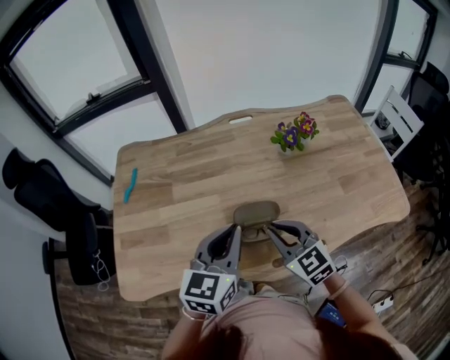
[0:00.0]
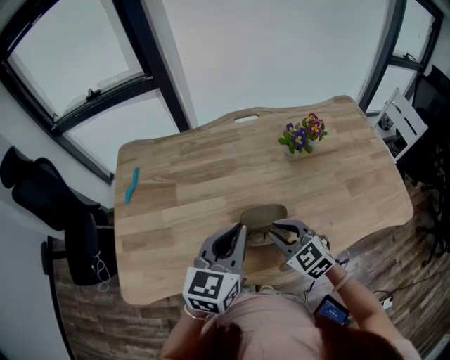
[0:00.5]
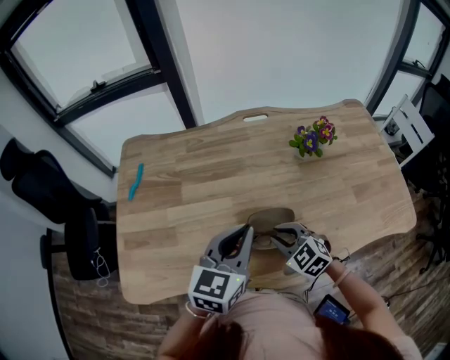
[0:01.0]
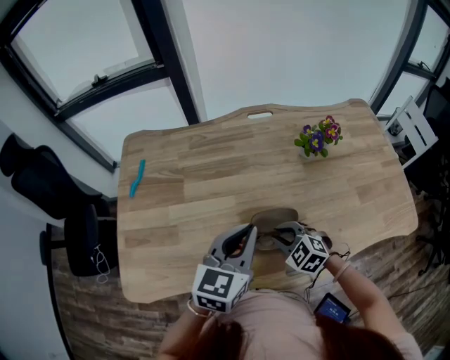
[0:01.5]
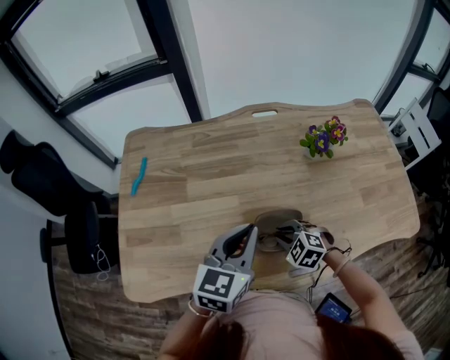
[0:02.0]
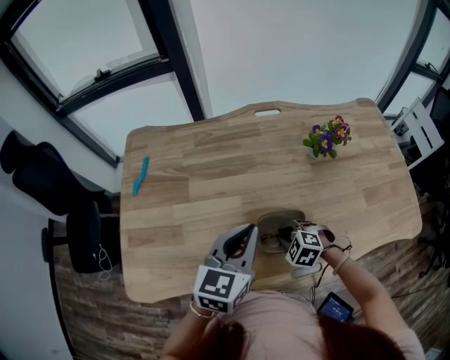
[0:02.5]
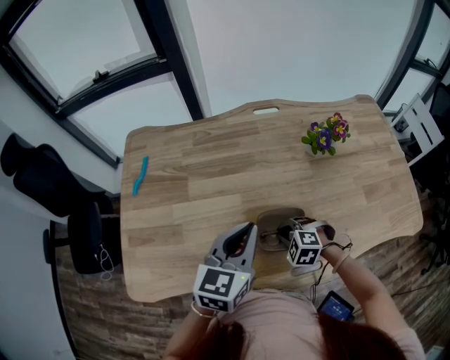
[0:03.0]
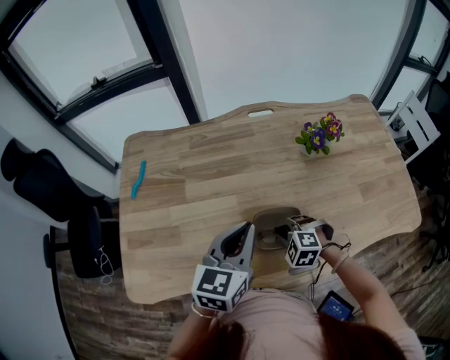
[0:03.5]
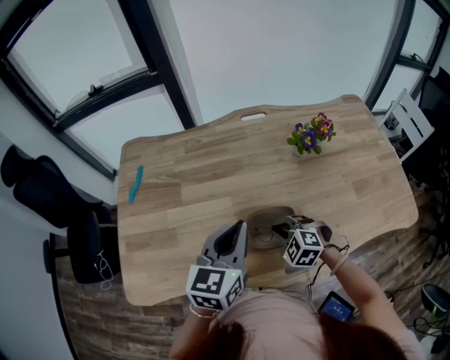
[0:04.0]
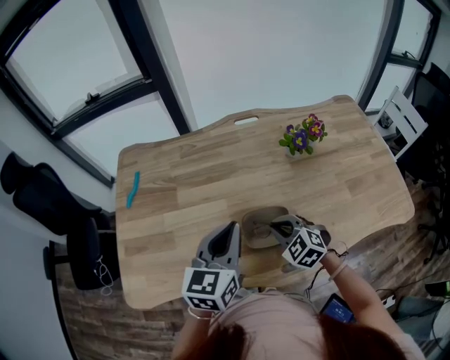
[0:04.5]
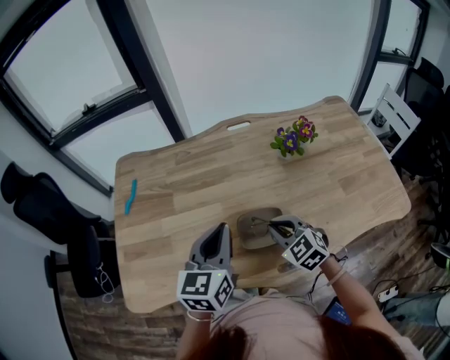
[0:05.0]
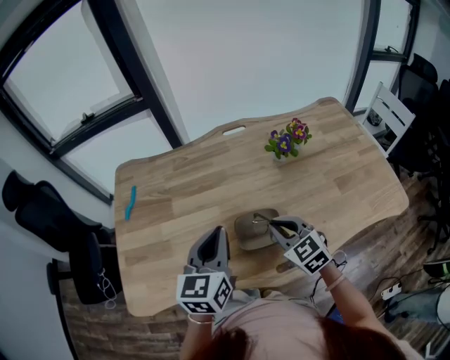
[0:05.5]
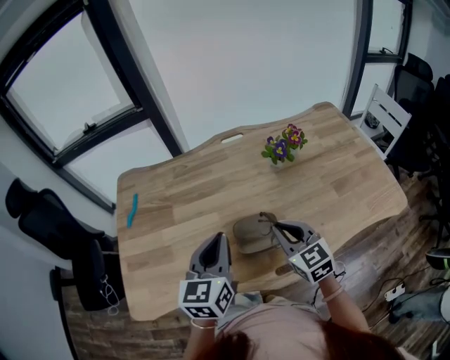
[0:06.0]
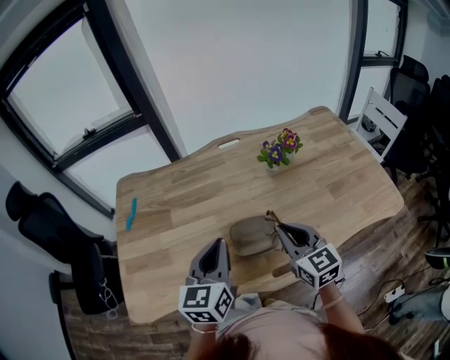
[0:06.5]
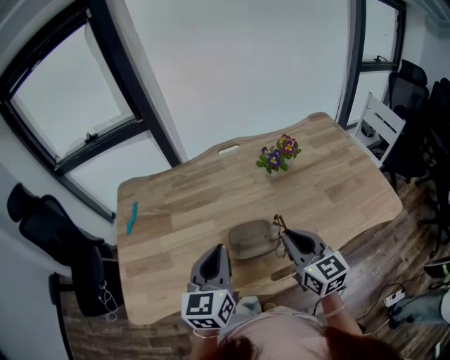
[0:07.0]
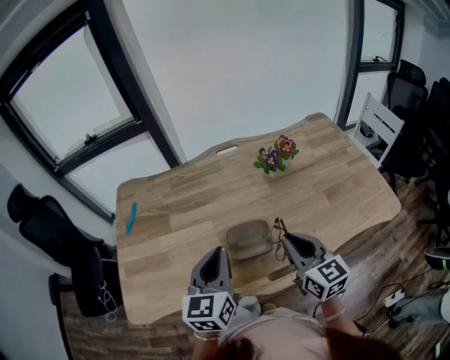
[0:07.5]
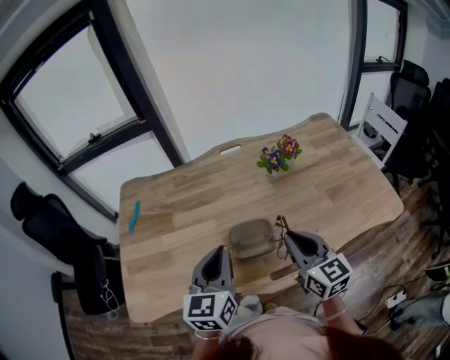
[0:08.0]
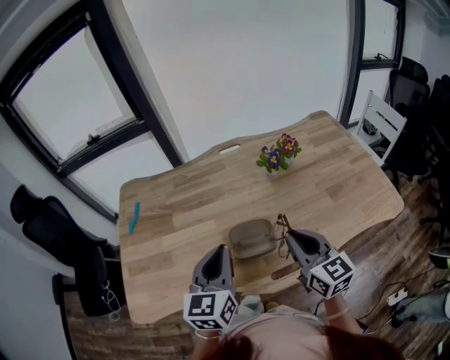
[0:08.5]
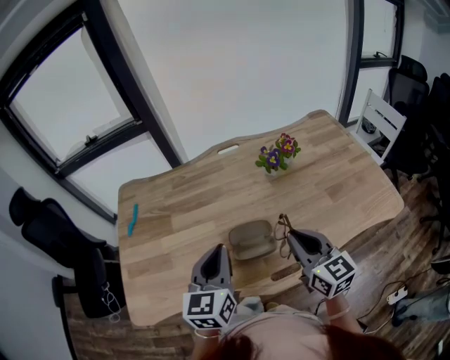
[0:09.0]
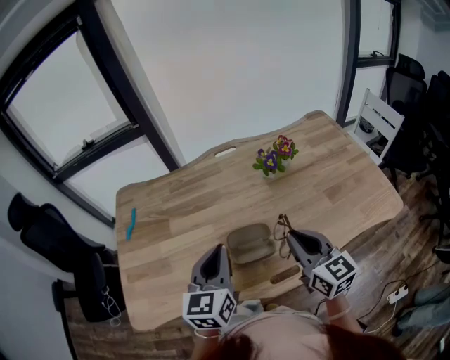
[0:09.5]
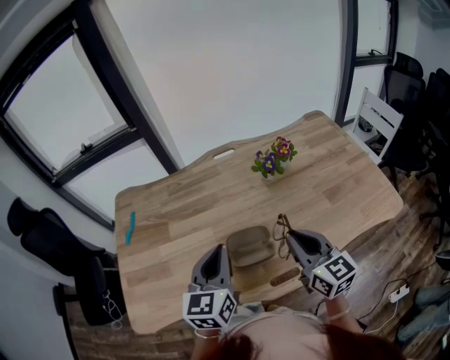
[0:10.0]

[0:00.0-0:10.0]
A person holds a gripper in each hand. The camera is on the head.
0:00.0 to 0:02.0: The right gripper shifts roughly 15 cm downward, and angles its fingers downward, by roughly 30 degrees. The left gripper travels forward by some 5 cm.
0:02.0 to 0:04.0: The grippers move only a little.
0:04.0 to 0:06.0: The right gripper goes roughly 15 cm upward, and tips its fingers upward by roughly 30 degrees.
0:06.0 to 0:08.0: The right gripper moves upward, approximately 5 cm.
0:08.0 to 0:10.0: There are only small adjustments of the grippers.

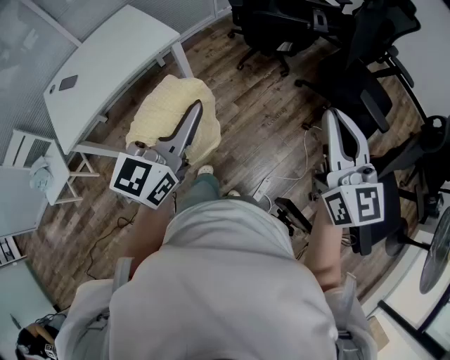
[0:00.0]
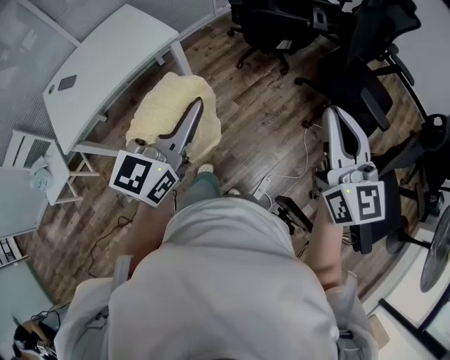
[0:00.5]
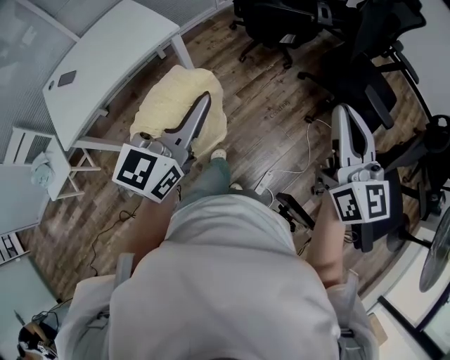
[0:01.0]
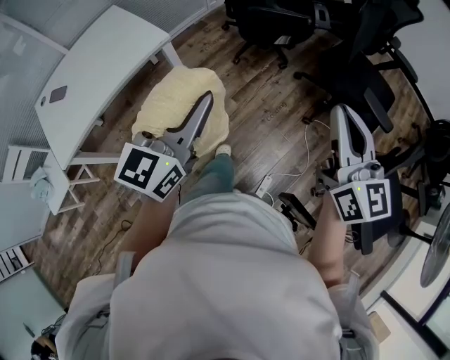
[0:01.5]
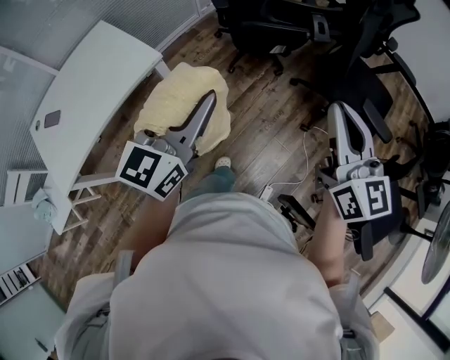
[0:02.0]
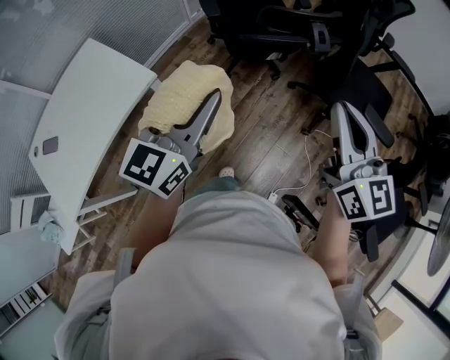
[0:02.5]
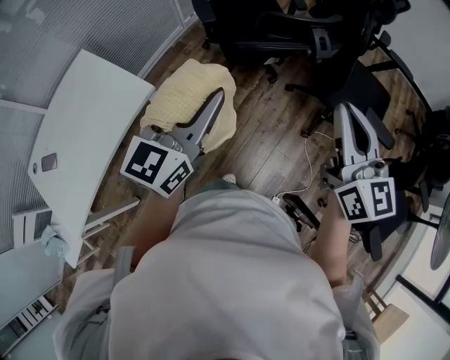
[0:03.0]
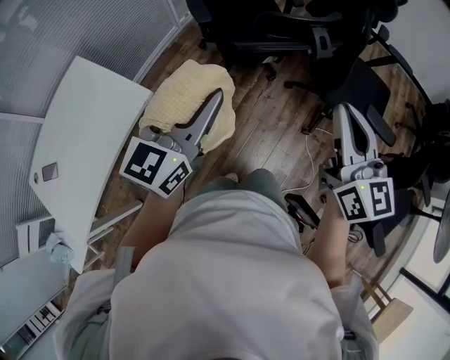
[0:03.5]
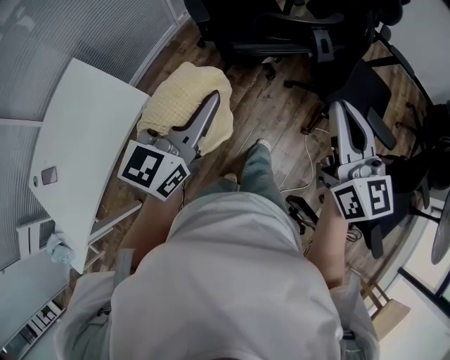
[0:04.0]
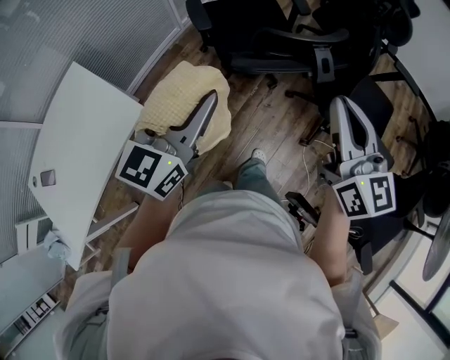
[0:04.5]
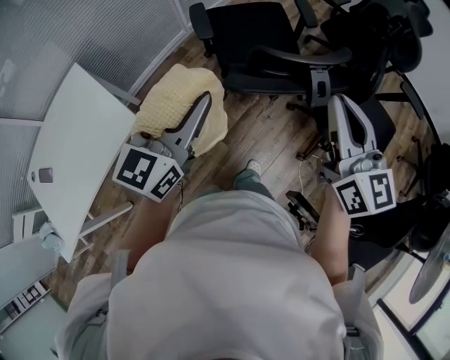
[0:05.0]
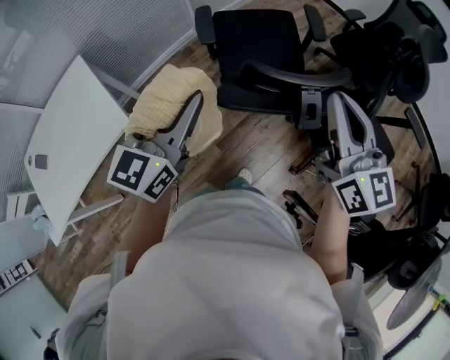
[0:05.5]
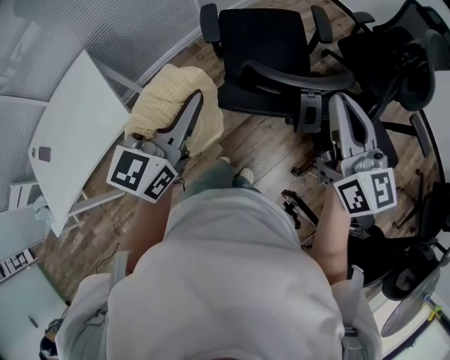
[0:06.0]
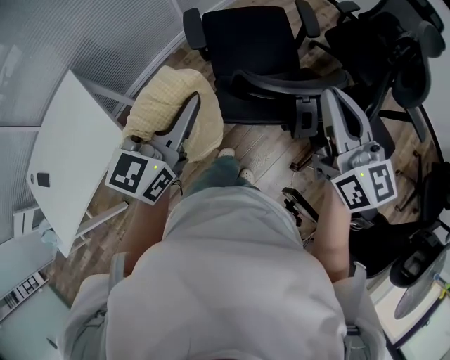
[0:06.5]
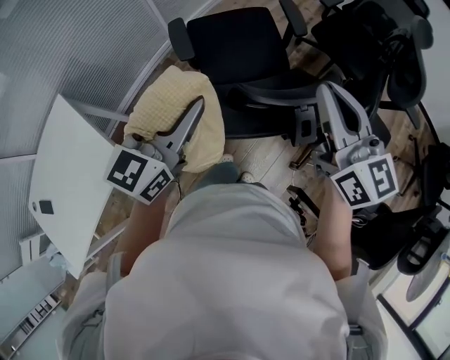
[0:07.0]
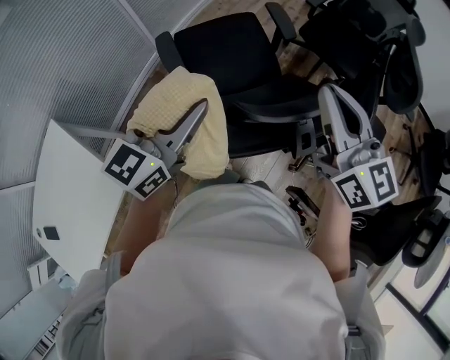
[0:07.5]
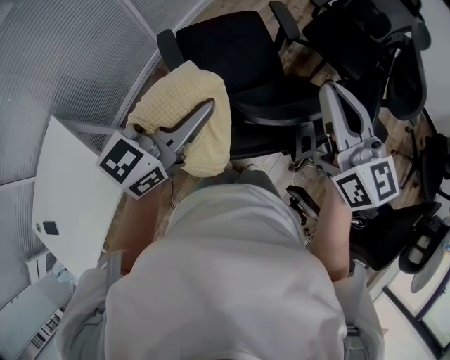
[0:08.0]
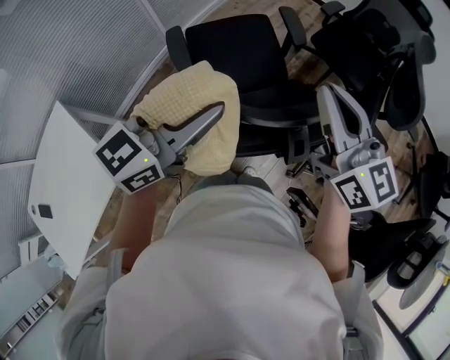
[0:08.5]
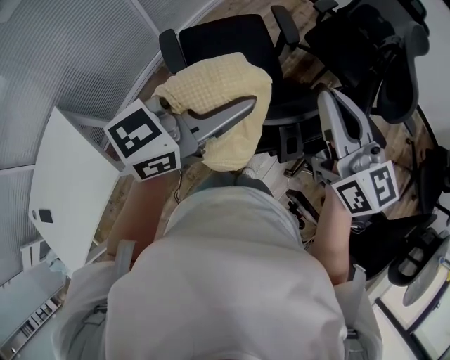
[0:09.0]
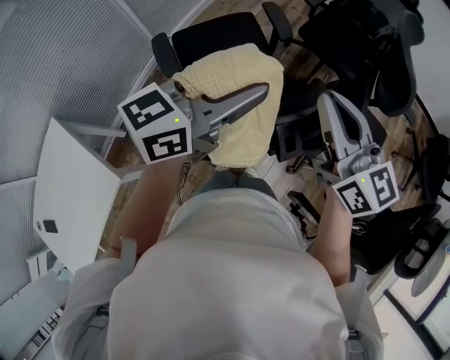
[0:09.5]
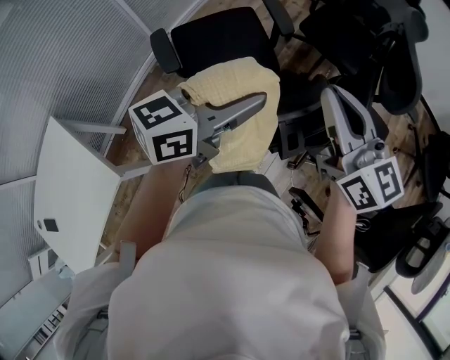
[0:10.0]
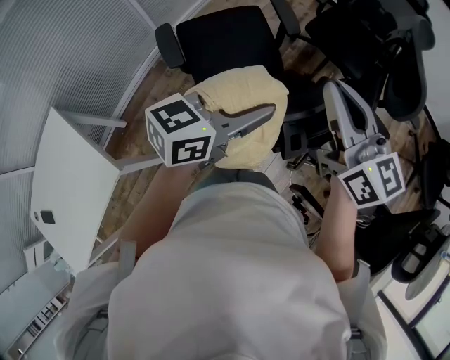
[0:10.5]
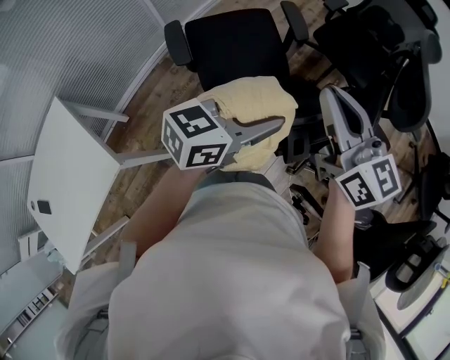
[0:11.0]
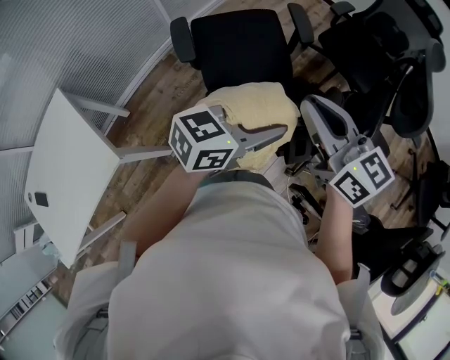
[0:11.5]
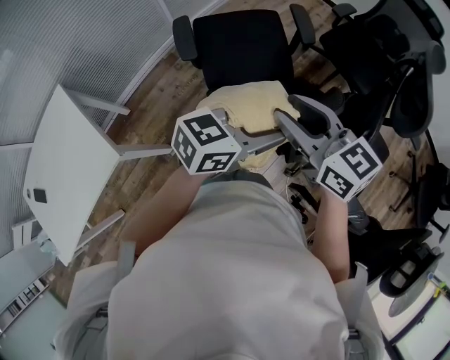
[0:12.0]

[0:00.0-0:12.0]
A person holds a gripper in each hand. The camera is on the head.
0:00.0 to 0:02.0: The grippers both shift forward by about 15 cm.
0:02.0 to 0:04.0: Both grippers move forward, about 15 cm.
0:04.0 to 0:06.0: The grippers both shift forward and to the right by some 25 cm. The left gripper rotates approximately 20 degrees.
0:06.0 to 0:08.0: The grippers both shift forward by roughly 10 cm. The left gripper swivels some 30 degrees.
0:08.0 to 0:10.0: The left gripper travels to the right by approximately 10 cm, and changes its angle by some 20 degrees.
0:10.0 to 0:12.0: The right gripper goes about 10 cm to the left and downward, changes its angle by some 30 degrees, and opens its fingers; the left gripper moves downward, some 5 cm.

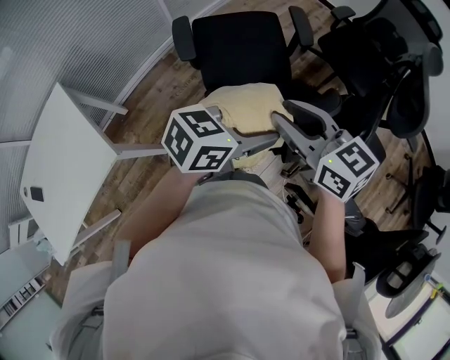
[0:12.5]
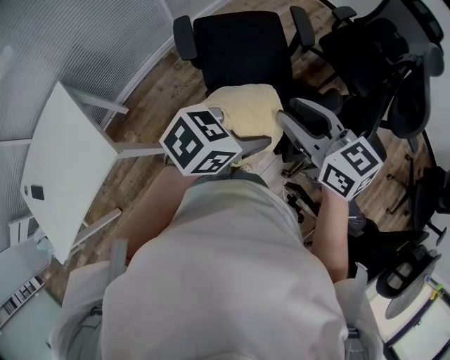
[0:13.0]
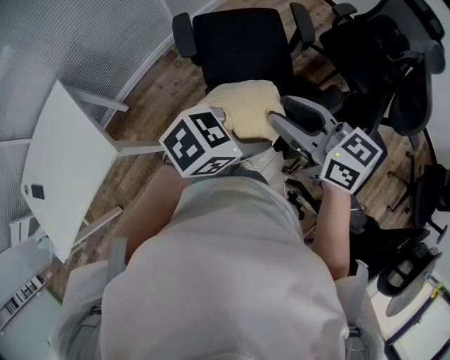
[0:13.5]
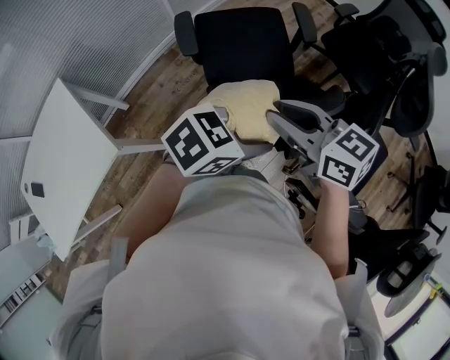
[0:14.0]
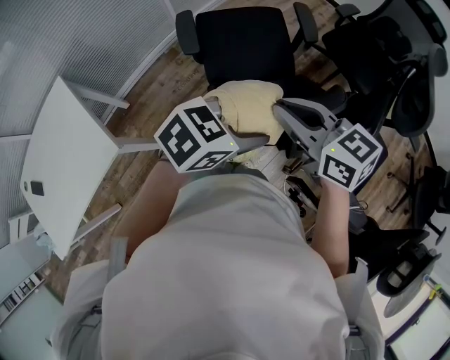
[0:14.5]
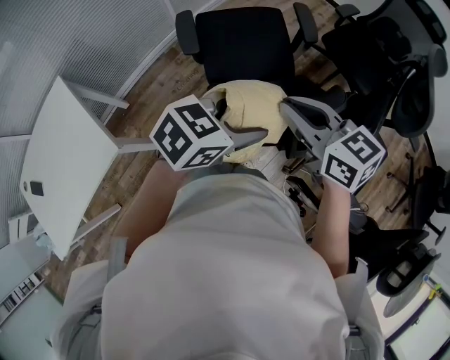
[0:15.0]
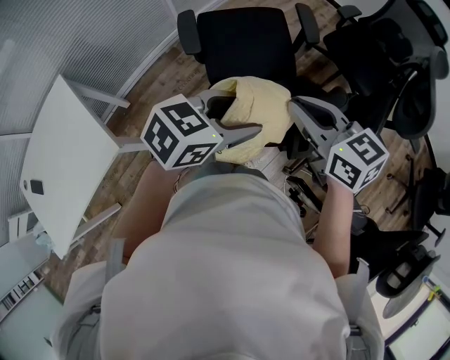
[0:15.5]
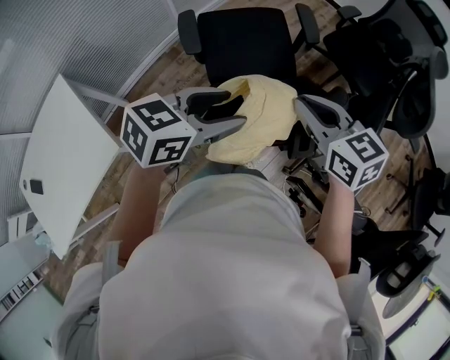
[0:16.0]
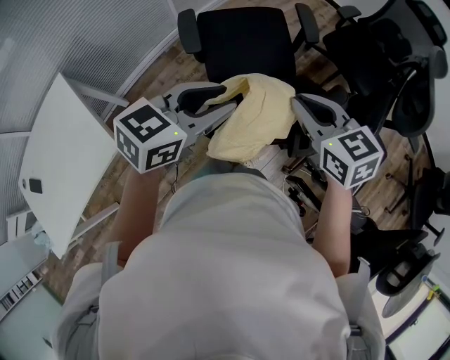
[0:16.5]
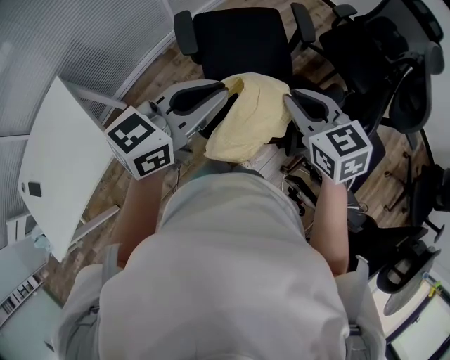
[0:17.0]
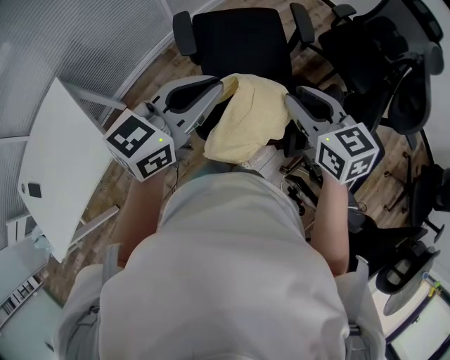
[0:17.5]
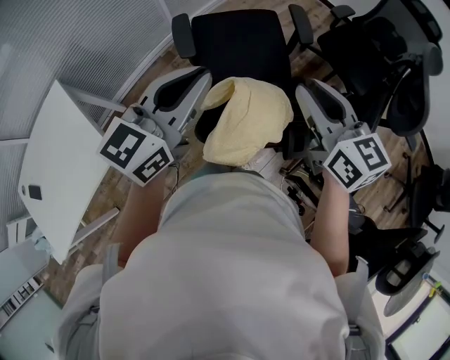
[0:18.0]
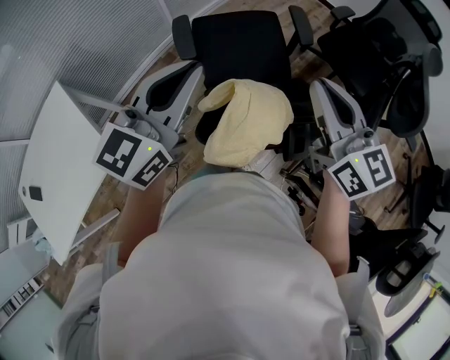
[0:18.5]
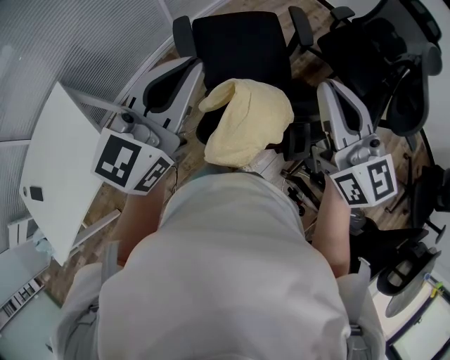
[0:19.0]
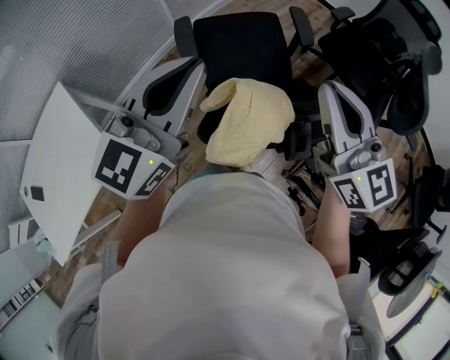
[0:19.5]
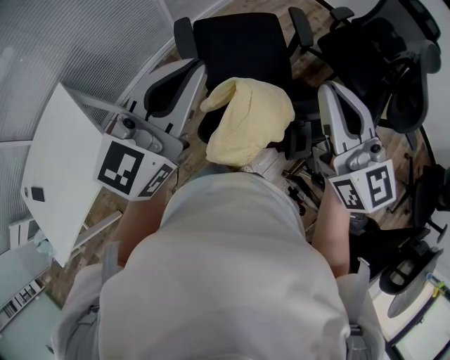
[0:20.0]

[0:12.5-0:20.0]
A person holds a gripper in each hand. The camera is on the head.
0:12.5 to 0:14.5: The right gripper closes its fingers.
0:14.5 to 0:16.5: The left gripper shifts by approximately 10 cm, changes its angle by approximately 20 degrees, and closes up.
0:16.5 to 0:18.0: The two grippers go about 5 cm upward. The left gripper changes its angle by approximately 30 degrees, and closes its fingers.
0:18.0 to 0:20.0: The two grippers go approximately 5 cm upward. The right gripper changes its angle by roughly 20 degrees, and closes its fingers.
